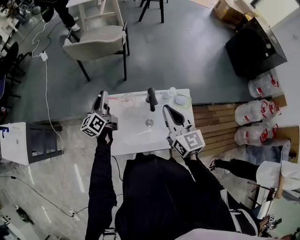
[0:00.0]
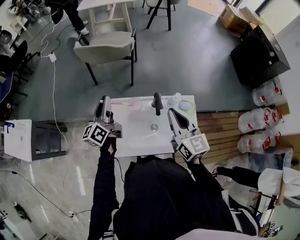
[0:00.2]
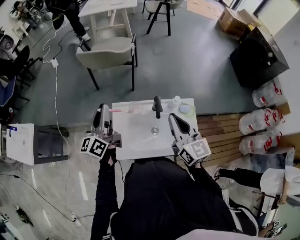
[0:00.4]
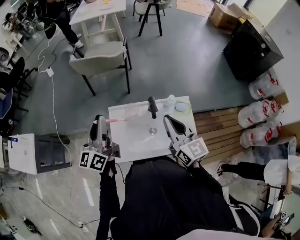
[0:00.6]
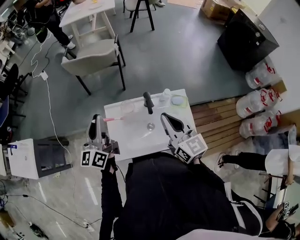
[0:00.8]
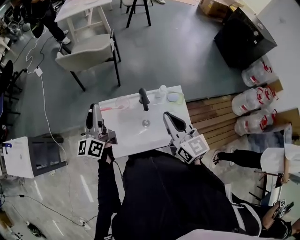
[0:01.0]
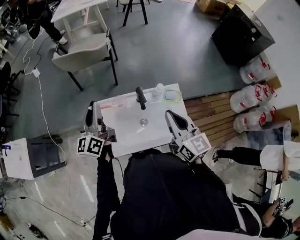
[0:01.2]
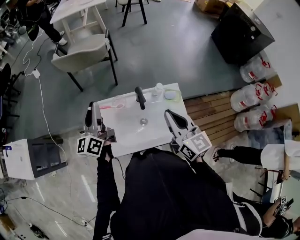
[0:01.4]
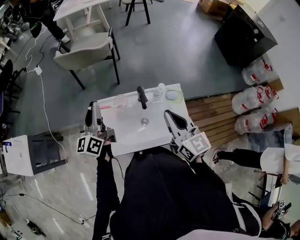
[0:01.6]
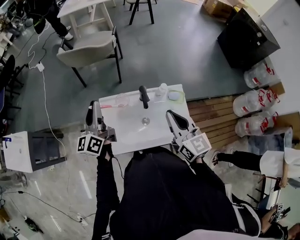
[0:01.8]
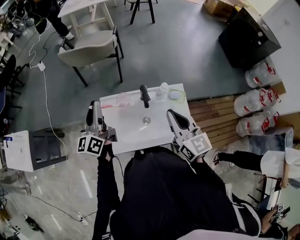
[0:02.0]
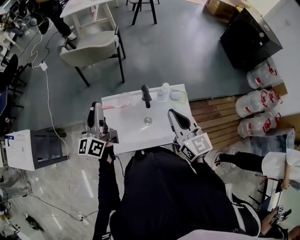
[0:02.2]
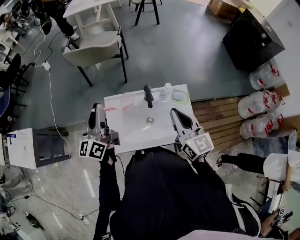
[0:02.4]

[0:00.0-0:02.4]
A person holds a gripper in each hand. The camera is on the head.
0:00.0 to 0:01.2: The right gripper shifts about 5 cm backward; the left gripper moves upward and backward, some 15 cm.
0:01.2 to 0:02.4: There are only small adjustments of the grippers.

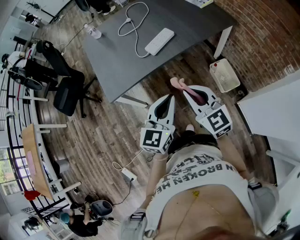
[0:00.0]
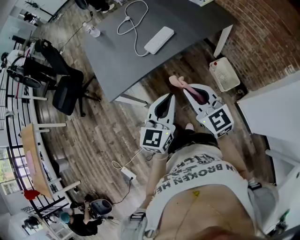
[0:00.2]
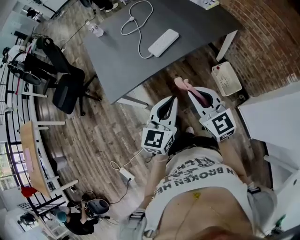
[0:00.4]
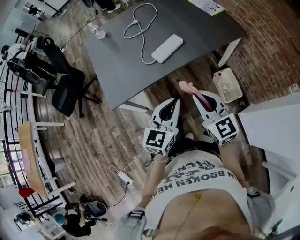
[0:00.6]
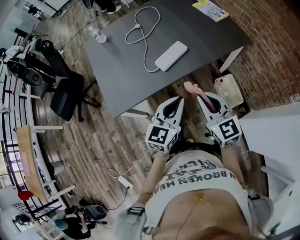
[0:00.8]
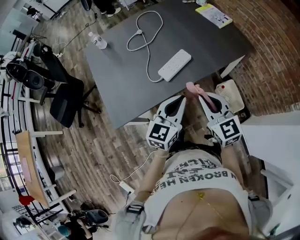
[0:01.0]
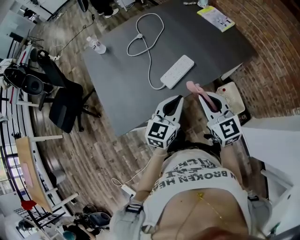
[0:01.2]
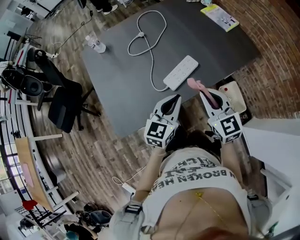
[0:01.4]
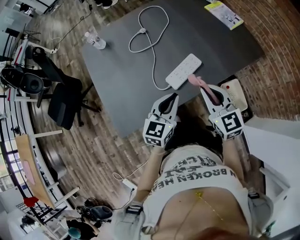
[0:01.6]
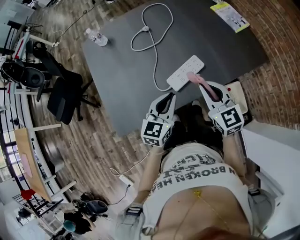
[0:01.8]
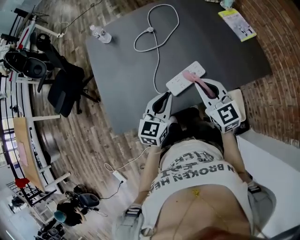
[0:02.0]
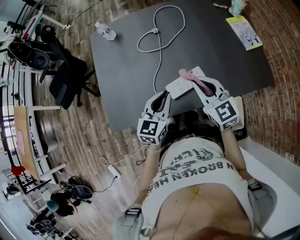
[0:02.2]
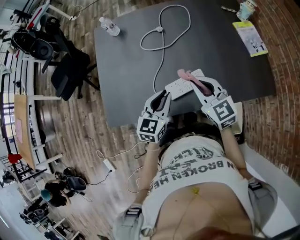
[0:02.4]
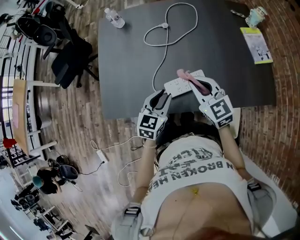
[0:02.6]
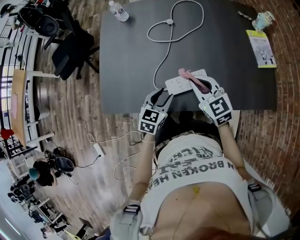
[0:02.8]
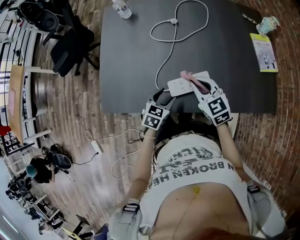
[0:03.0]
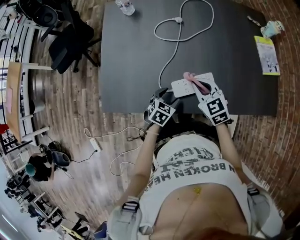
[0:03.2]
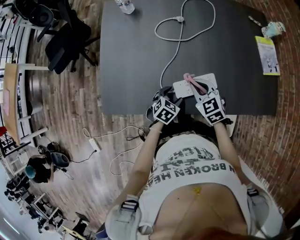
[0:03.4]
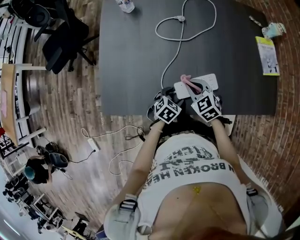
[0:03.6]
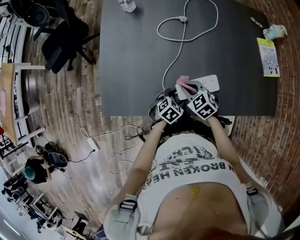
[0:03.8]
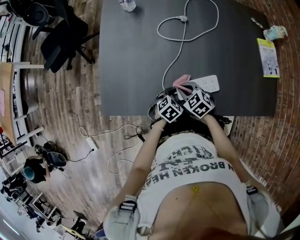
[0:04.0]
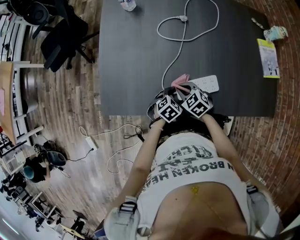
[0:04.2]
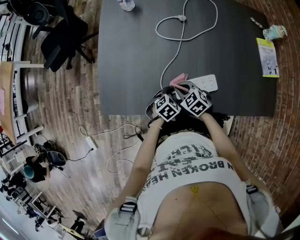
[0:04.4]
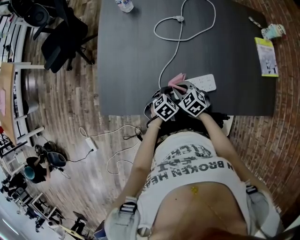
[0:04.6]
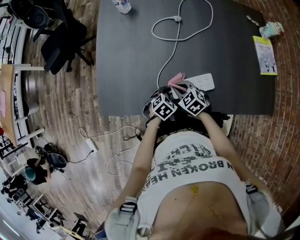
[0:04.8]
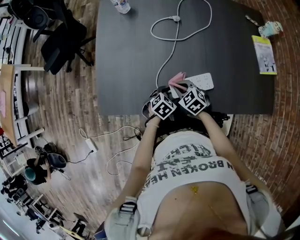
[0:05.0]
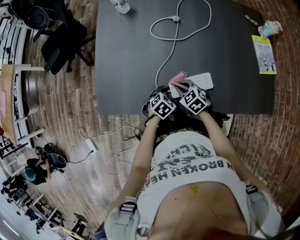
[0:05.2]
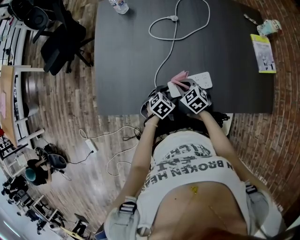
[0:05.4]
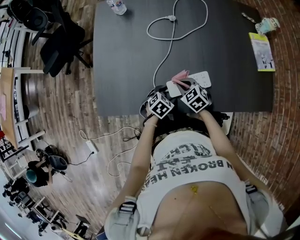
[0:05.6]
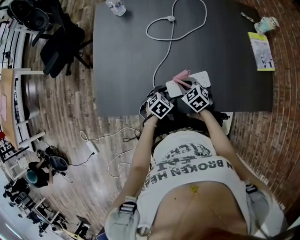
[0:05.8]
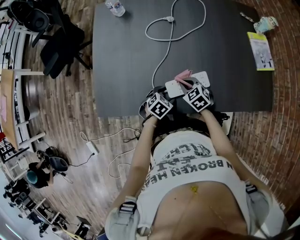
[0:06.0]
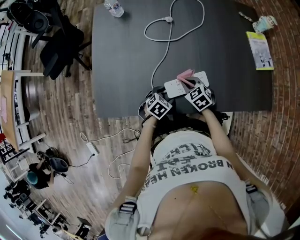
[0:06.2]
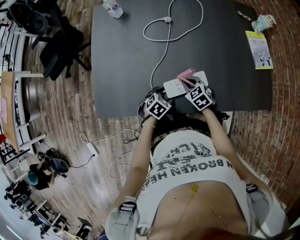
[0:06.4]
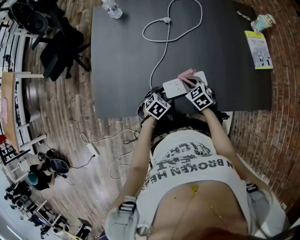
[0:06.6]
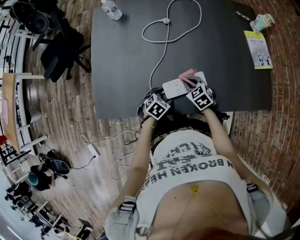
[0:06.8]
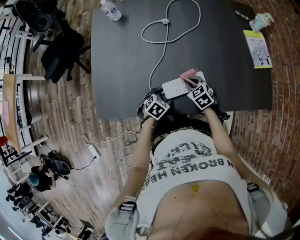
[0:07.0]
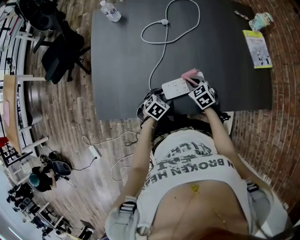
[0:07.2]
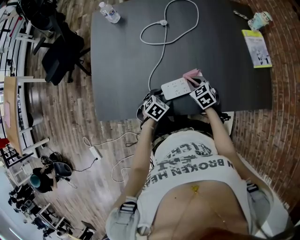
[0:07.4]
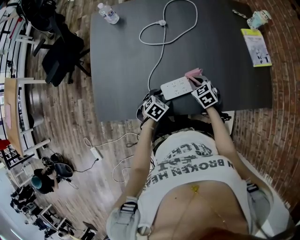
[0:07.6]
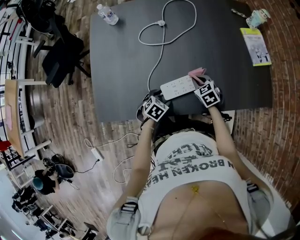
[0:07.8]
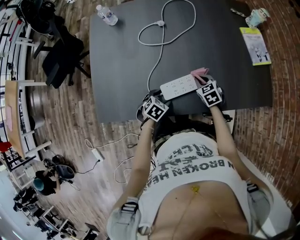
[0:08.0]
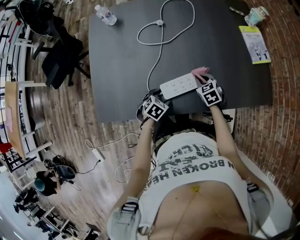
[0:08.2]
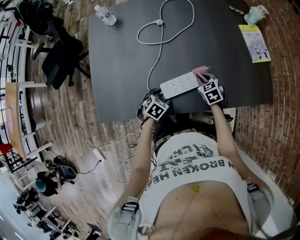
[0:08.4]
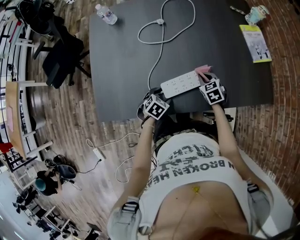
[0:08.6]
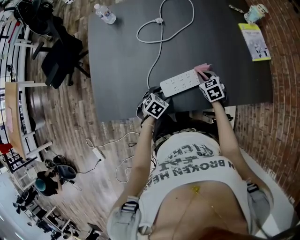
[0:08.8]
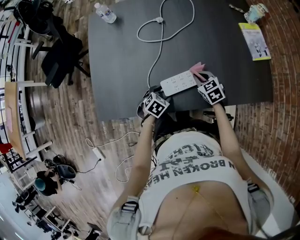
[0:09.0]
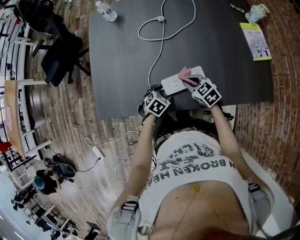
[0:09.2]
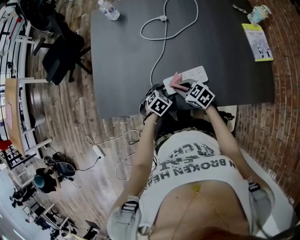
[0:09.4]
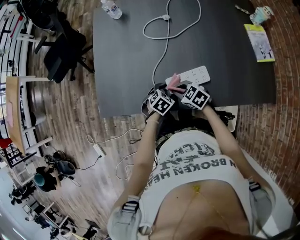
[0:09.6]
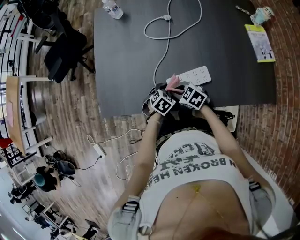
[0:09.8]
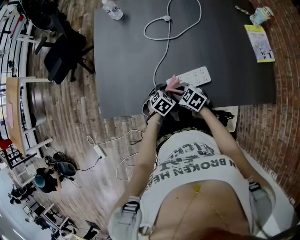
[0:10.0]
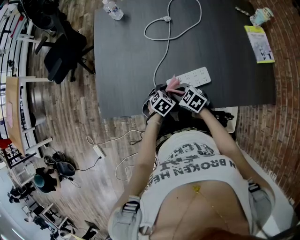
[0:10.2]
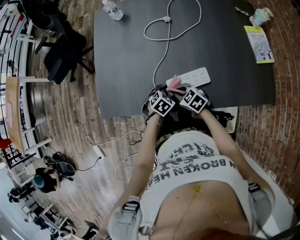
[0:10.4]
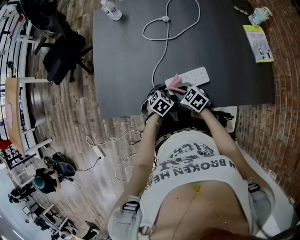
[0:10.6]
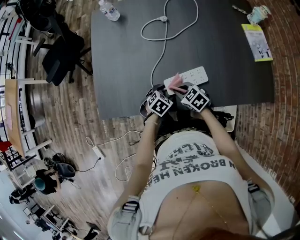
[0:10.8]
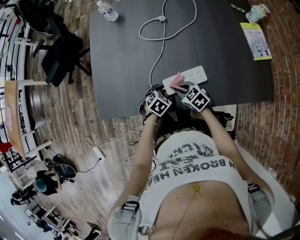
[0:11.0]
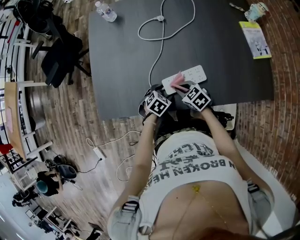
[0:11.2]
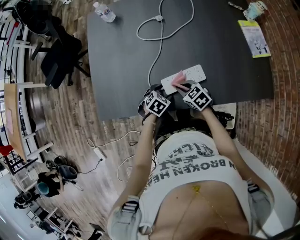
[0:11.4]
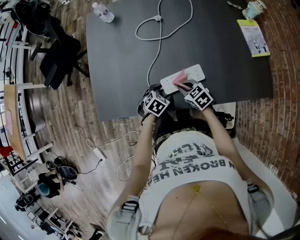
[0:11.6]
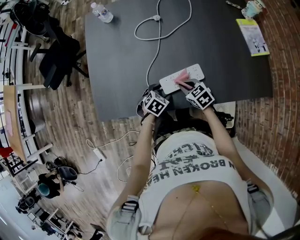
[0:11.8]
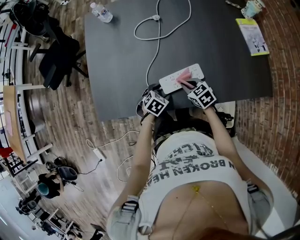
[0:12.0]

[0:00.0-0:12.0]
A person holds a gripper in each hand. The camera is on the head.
0:00.0 to 0:01.6: The two grippers go approximately 30 cm forward.
0:01.6 to 0:03.0: The right gripper shifts by some 15 cm, and changes its angle by some 40 degrees. Meanwhile the left gripper is displaced downward by roughly 15 cm, swivels some 30 degrees, and opens.
0:03.0 to 0:04.4: The left gripper travels downward by about 10 cm, and rotates about 20 degrees. Meanwhile the right gripper moves downward and to the left, about 20 cm, and turns by roughly 30 degrees.
0:04.4 to 0:06.0: The right gripper moves to the right, roughly 5 cm.
0:06.0 to 0:07.6: The right gripper goes about 10 cm to the right.
0:07.6 to 0:09.0: There are only small adjustments of the grippers.
0:09.0 to 0:10.4: The right gripper changes place by about 15 cm, and rotates about 30 degrees.
0:10.4 to 0:12.0: The right gripper shifts by some 10 cm.

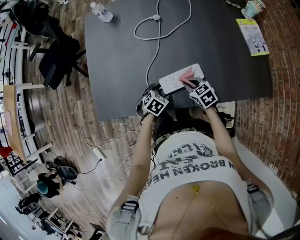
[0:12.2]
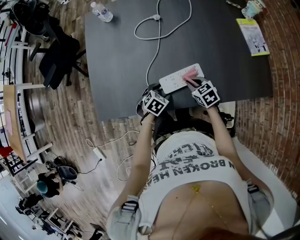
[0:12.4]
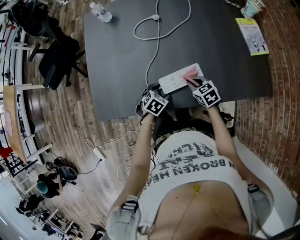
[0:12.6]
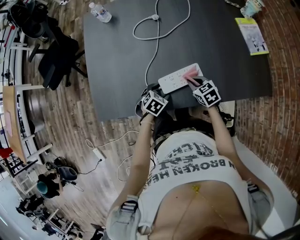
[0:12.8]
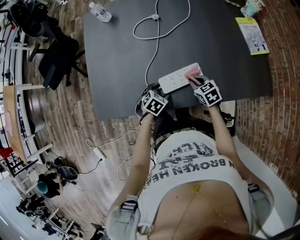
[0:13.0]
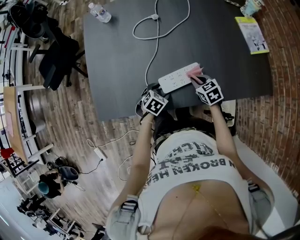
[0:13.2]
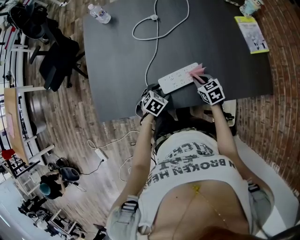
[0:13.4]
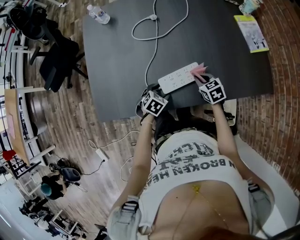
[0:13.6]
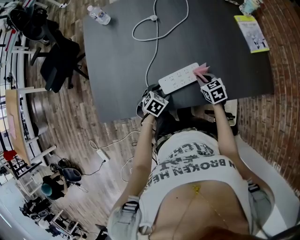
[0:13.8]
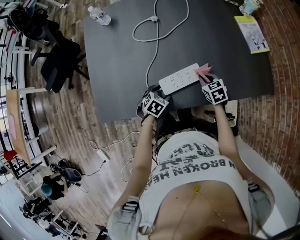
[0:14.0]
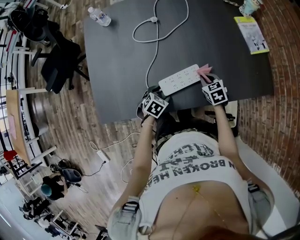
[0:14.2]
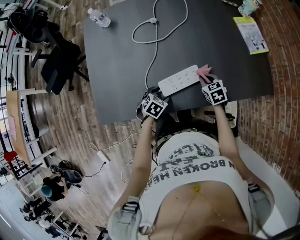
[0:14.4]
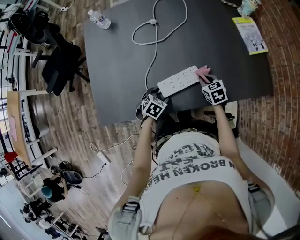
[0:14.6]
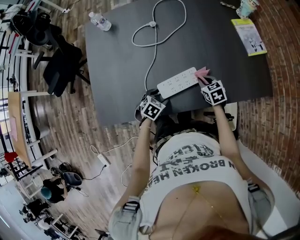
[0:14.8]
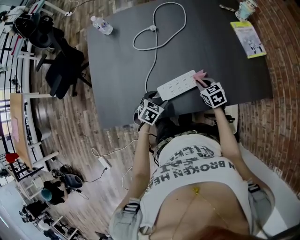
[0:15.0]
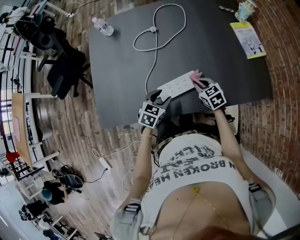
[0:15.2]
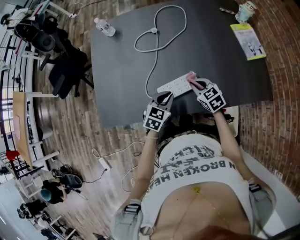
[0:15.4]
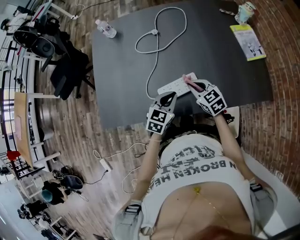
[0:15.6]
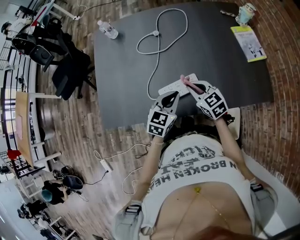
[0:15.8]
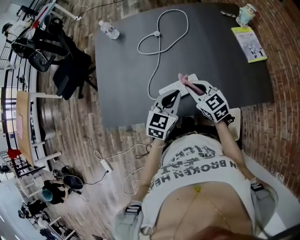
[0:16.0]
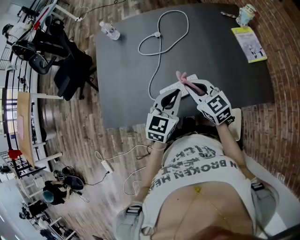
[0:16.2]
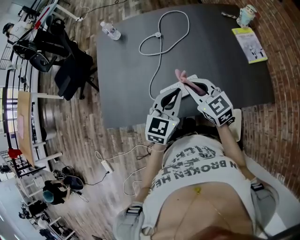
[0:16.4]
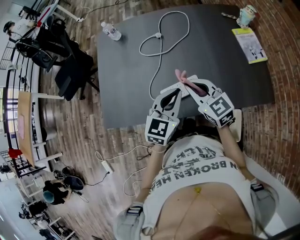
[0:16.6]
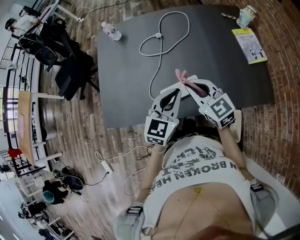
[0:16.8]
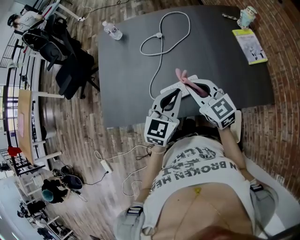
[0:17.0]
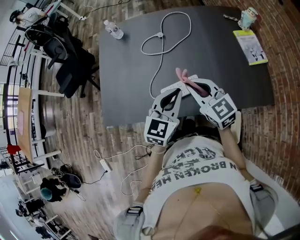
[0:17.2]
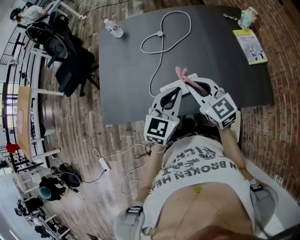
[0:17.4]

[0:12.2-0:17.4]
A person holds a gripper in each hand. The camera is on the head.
0:12.2 to 0:14.0: The right gripper moves to the right, roughly 10 cm.
0:14.0 to 0:15.6: The right gripper heads upward, covering roughly 10 cm, and turns by approximately 20 degrees. Meanwhile the left gripper is displaced upward and to the right by roughly 15 cm, tips its fingers upward by about 30 degrees, and closes up.
0:15.6 to 0:17.4: The grippers both shift upward by some 15 cm.

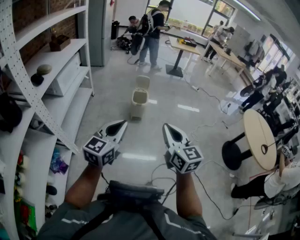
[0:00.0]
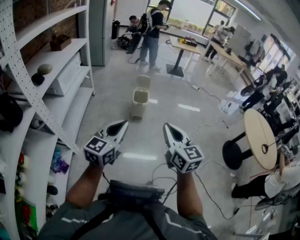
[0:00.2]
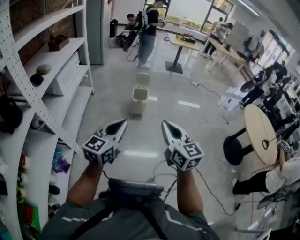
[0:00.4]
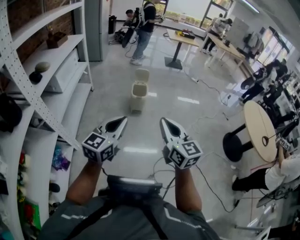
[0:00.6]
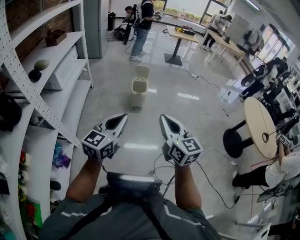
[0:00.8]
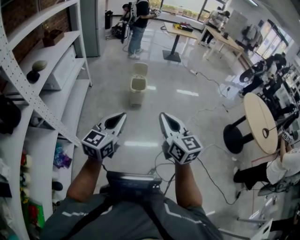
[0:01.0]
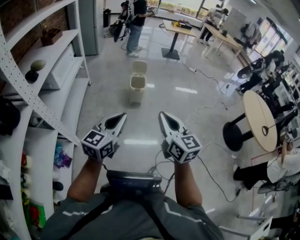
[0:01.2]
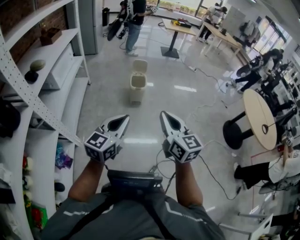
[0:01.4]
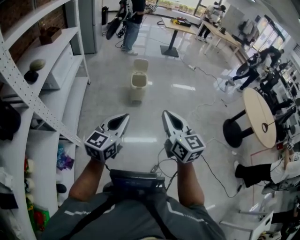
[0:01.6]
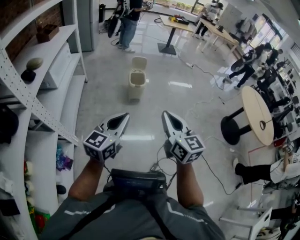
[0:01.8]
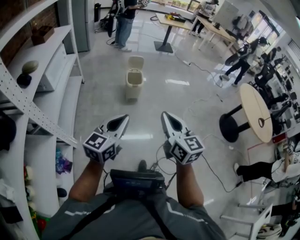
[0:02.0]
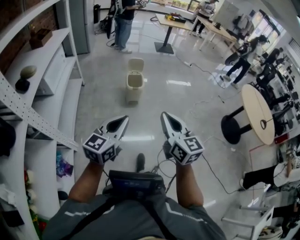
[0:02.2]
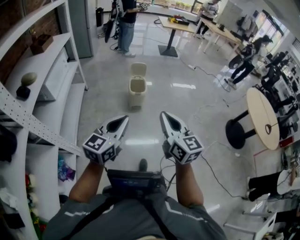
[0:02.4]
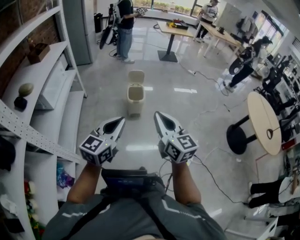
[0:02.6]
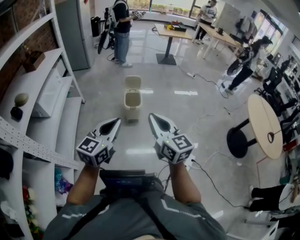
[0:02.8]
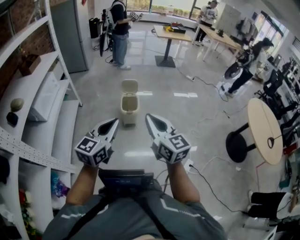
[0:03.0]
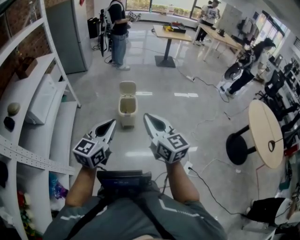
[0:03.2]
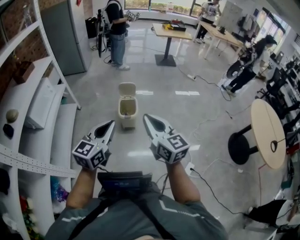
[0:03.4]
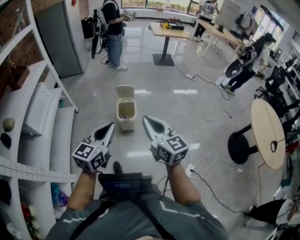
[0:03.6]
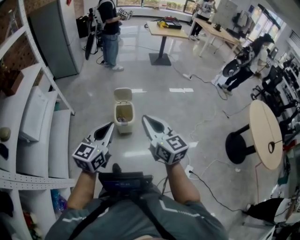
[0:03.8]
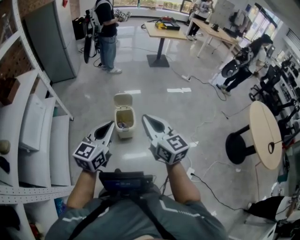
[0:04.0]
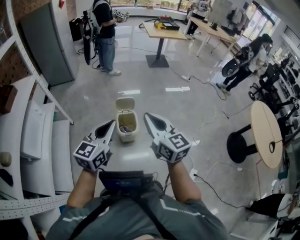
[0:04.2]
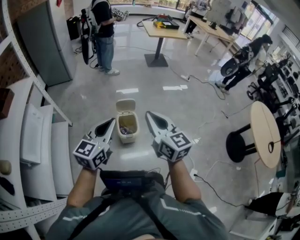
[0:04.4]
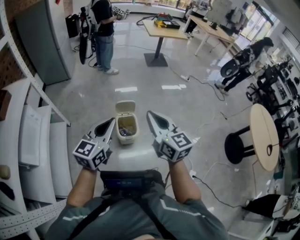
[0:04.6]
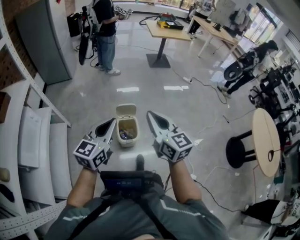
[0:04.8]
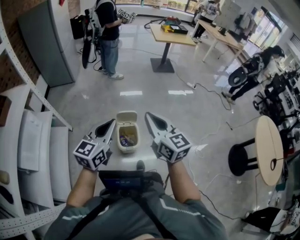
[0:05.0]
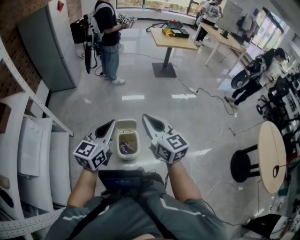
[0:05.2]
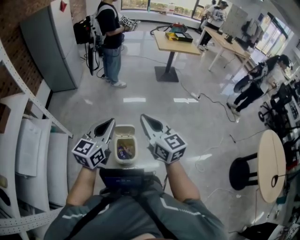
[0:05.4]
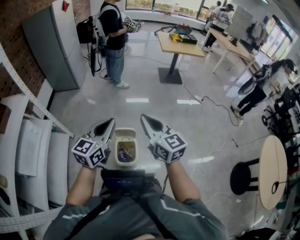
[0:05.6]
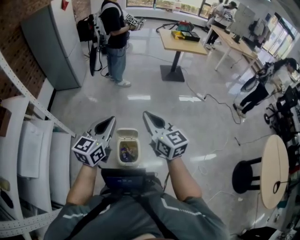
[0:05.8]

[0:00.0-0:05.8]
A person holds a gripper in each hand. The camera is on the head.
0:00.0 to 0:01.4: There are only small adjustments of the grippers.
0:01.4 to 0:02.8: Both grippers travel together forward, some 20 cm.
0:02.8 to 0:04.4: Both grippers travel together forward, approximately 35 cm.
0:04.4 to 0:05.8: The grippers both shift forward by about 25 cm.
